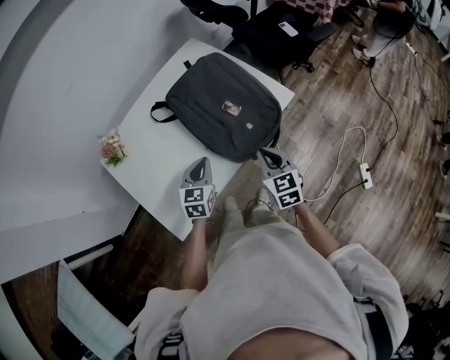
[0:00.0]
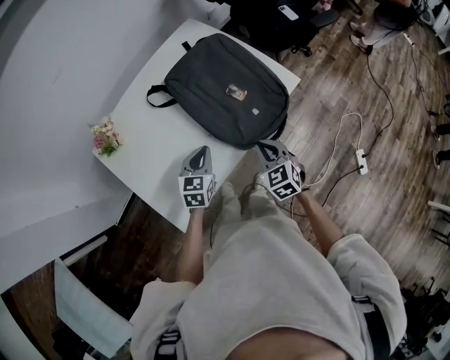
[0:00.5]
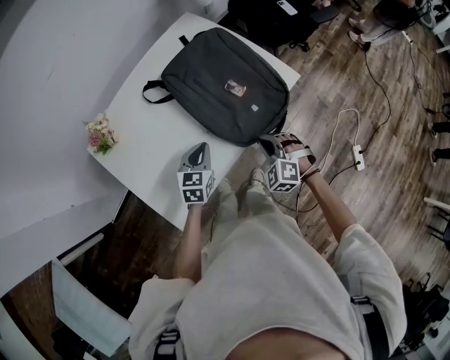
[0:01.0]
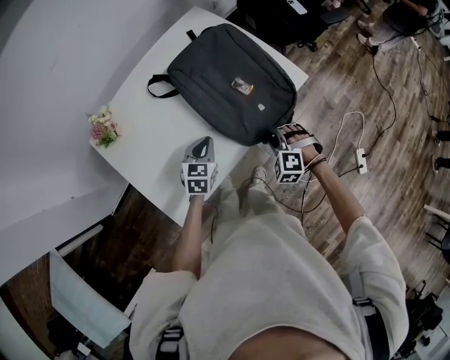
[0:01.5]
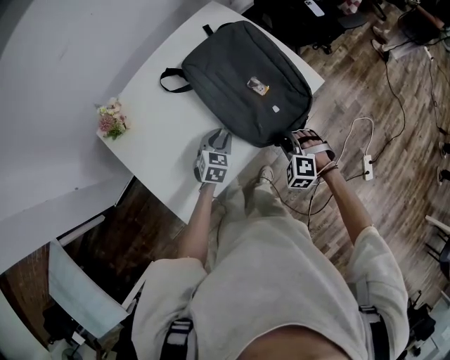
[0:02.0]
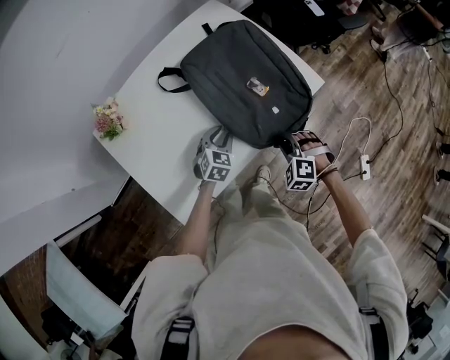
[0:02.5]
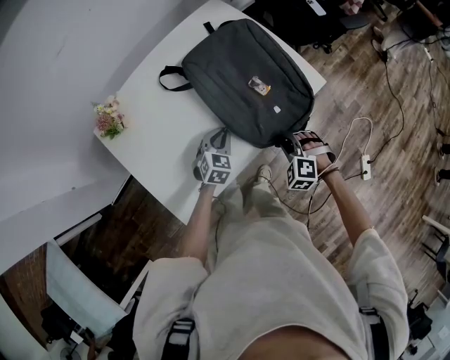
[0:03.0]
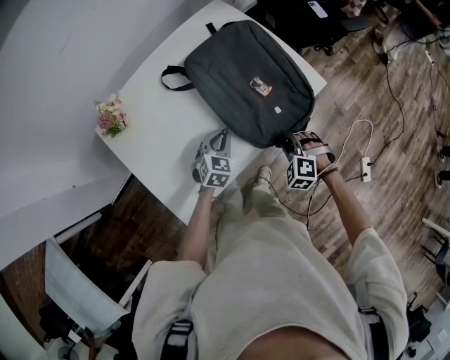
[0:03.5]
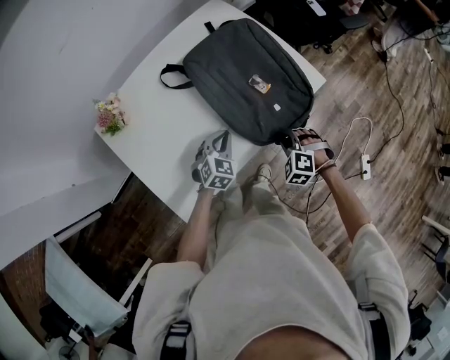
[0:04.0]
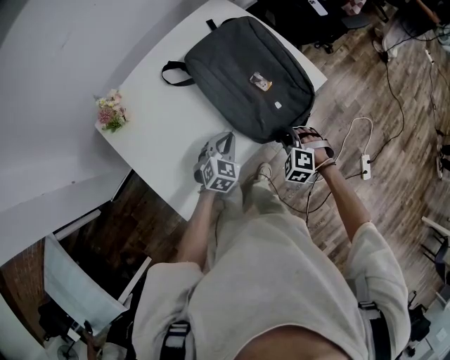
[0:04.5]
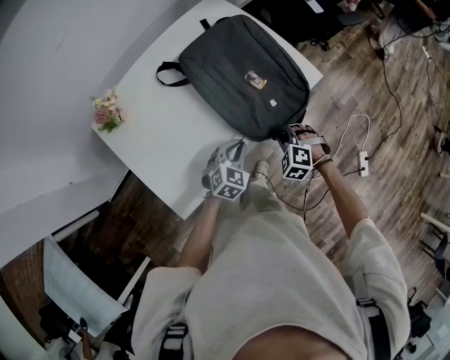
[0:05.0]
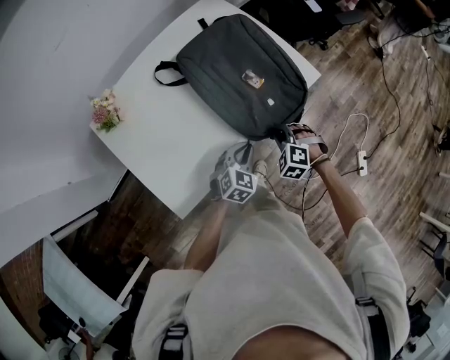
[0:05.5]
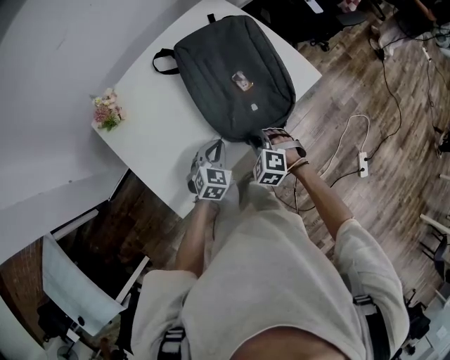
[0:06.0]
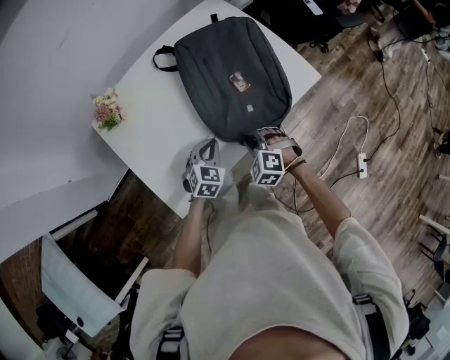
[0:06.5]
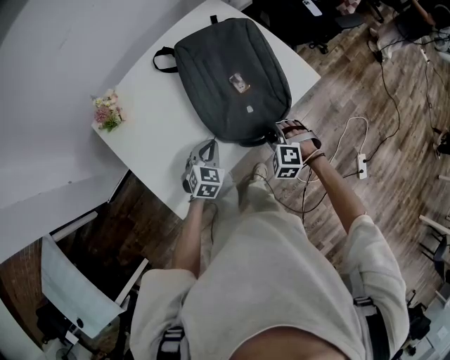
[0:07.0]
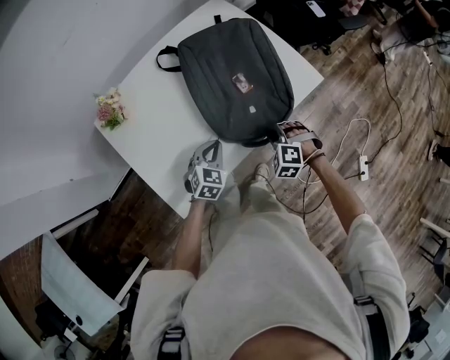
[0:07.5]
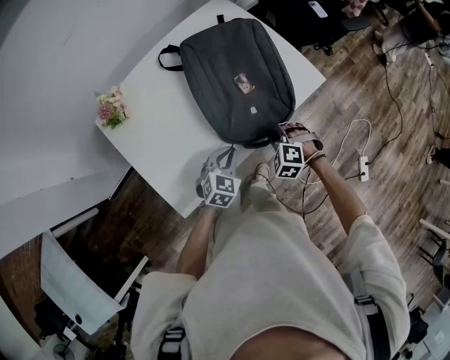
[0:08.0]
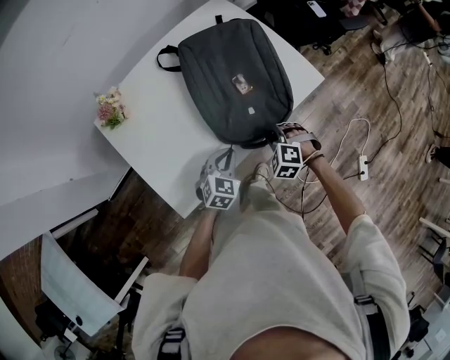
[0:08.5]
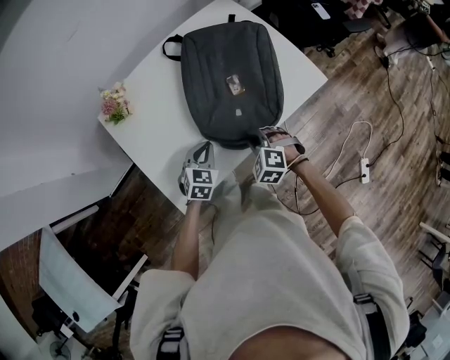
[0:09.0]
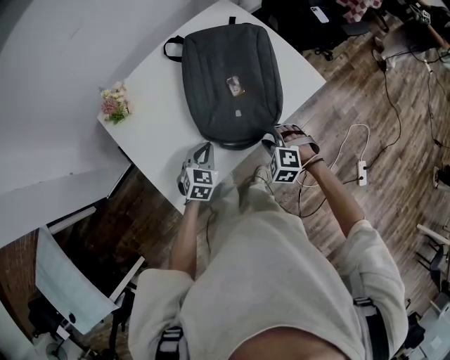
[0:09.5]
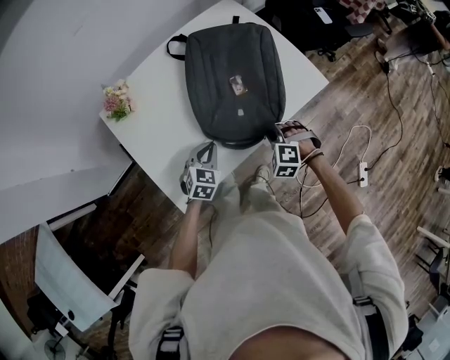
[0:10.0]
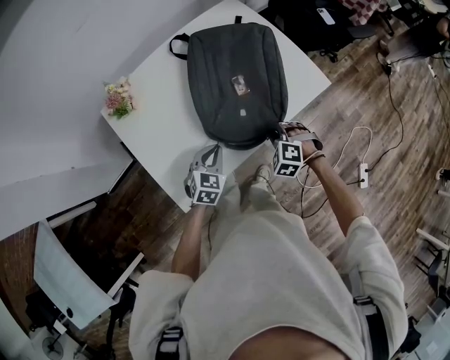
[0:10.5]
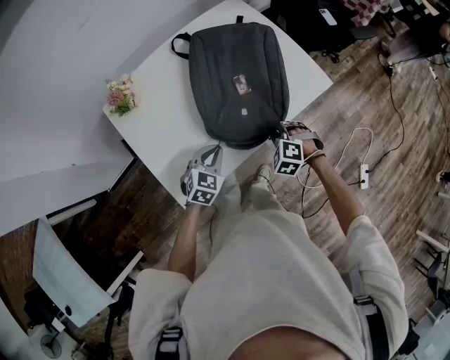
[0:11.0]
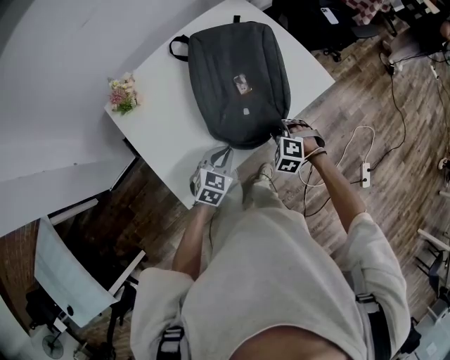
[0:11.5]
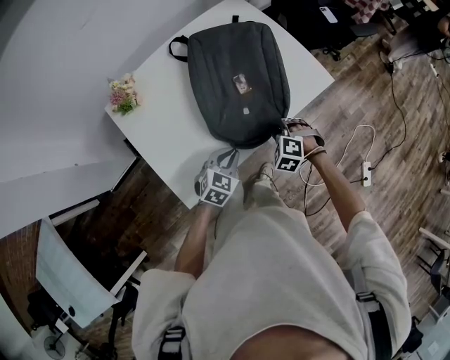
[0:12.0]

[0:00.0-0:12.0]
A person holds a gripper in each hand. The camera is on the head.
0:00.0 to 0:02.0: Both grippers travel together downward, some 10 cm. The right gripper rolls counterclockwise, seen from behind, by some 60 degrees, and opens its fingers.
0:02.0 to 0:04.0: The grippers move only a little.
0:04.0 to 0:06.0: The left gripper shifts some 5 cm backward, and travels to the right and back again, some 10 cm each way. Meanwhile the right gripper moves to the left, roughly 10 cm.
0:06.0 to 0:08.0: The right gripper opens, then closes again.
0:08.0 to 0:10.0: The right gripper reaches approximately 10 cm to the left, then returns, and opens and closes again. The left gripper travels to the left by some 10 cm.
0:10.0 to 0:12.0: The left gripper heads to the right, covering approximately 5 cm.

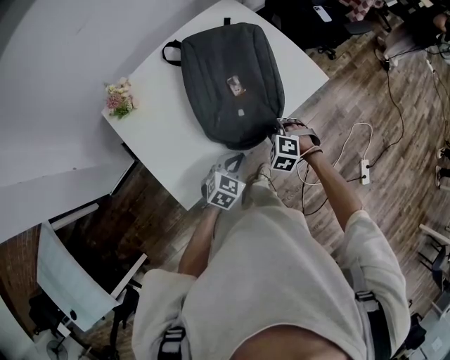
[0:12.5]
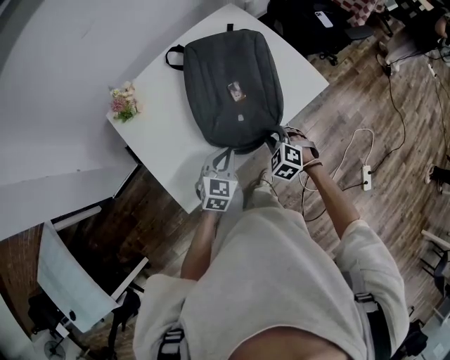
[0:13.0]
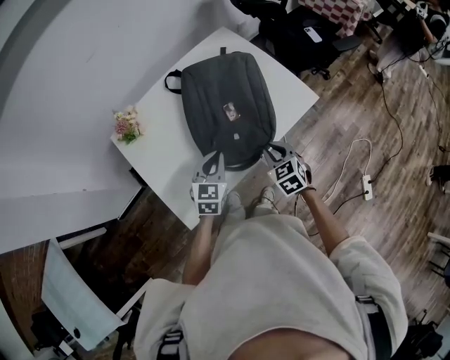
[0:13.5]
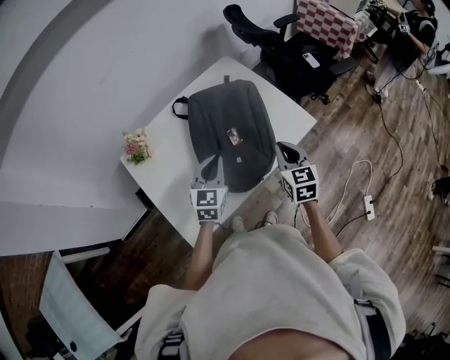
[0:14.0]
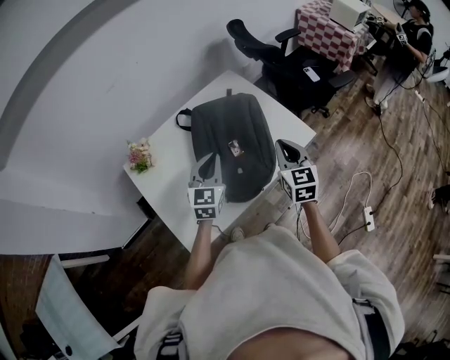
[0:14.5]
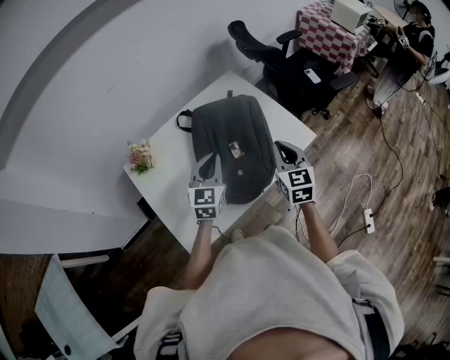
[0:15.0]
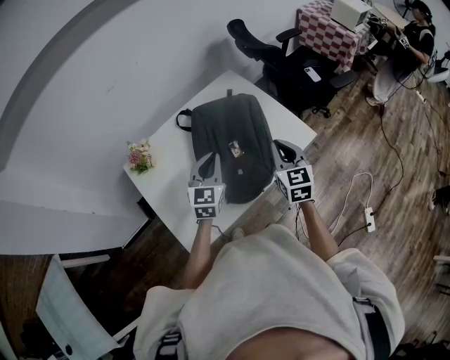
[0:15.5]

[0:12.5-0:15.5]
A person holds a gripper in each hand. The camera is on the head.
0:12.5 to 0:14.0: The left gripper goes some 20 cm upward and forward, and swivels approximately 30 degrees, while the right gripper heads upward, covering some 20 cm, and rolls clockwise, seen from behind, by about 60 degrees.
0:14.0 to 0:15.5: The right gripper shifts by some 5 cm.

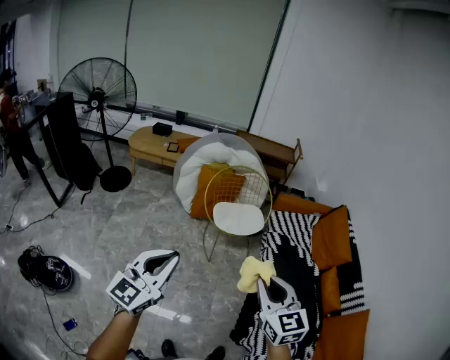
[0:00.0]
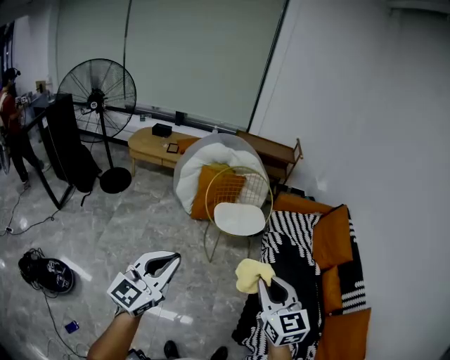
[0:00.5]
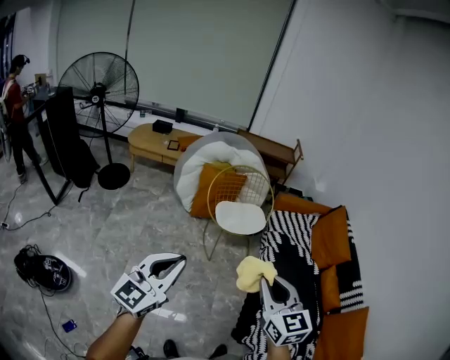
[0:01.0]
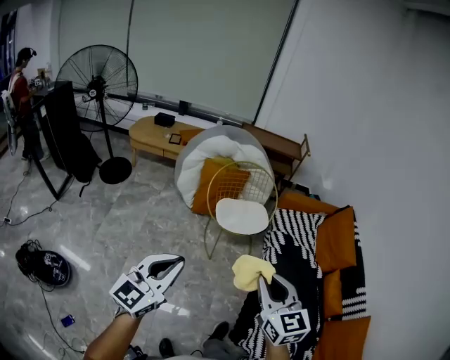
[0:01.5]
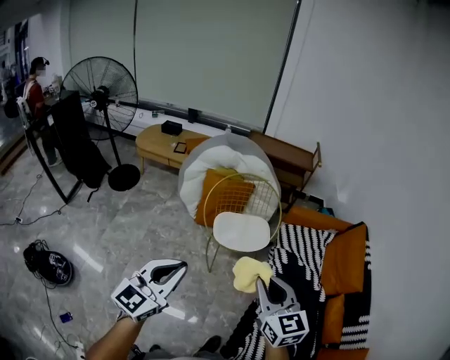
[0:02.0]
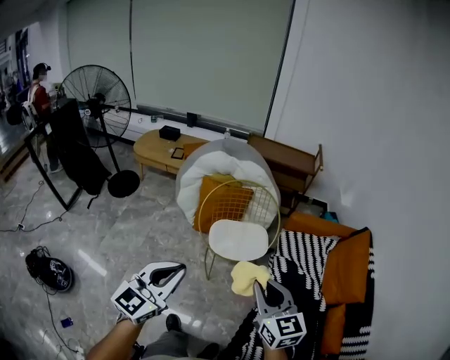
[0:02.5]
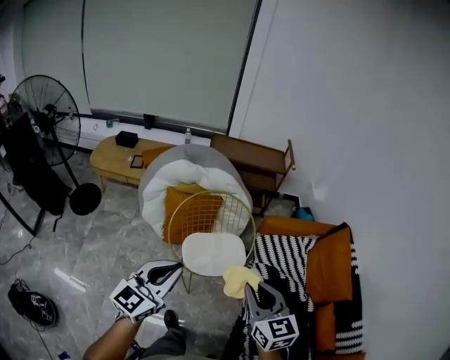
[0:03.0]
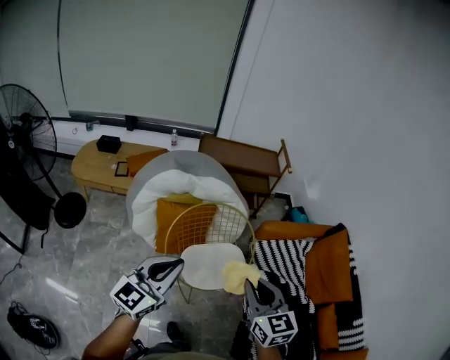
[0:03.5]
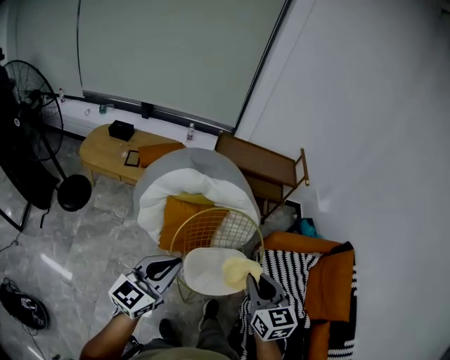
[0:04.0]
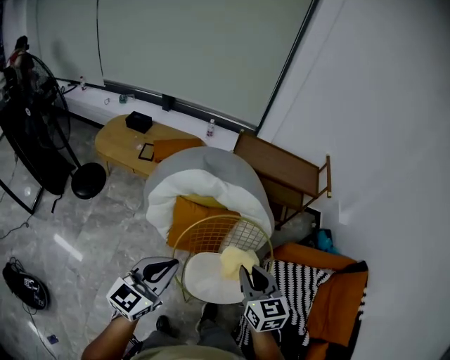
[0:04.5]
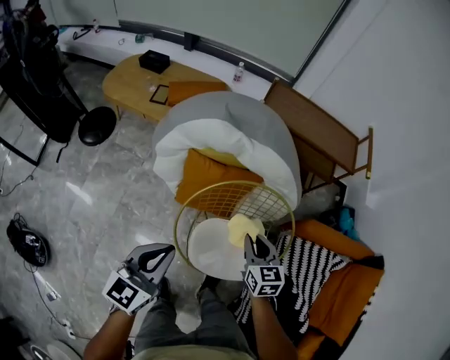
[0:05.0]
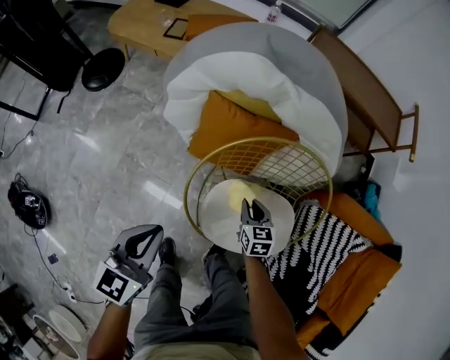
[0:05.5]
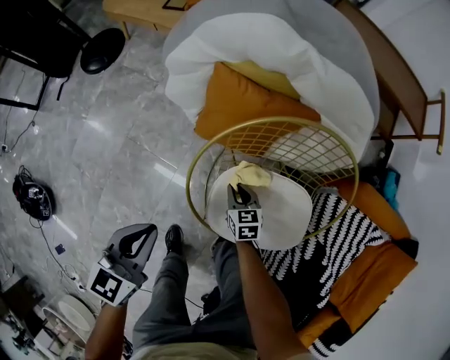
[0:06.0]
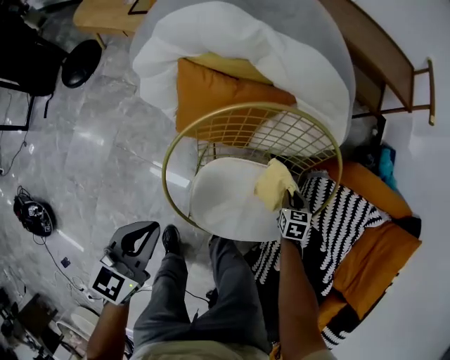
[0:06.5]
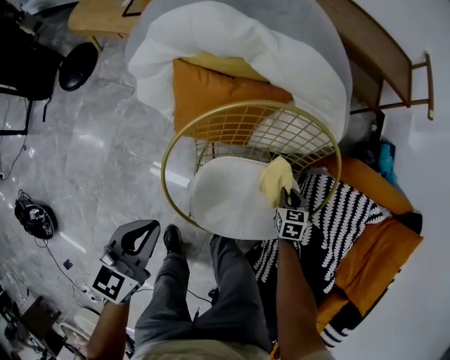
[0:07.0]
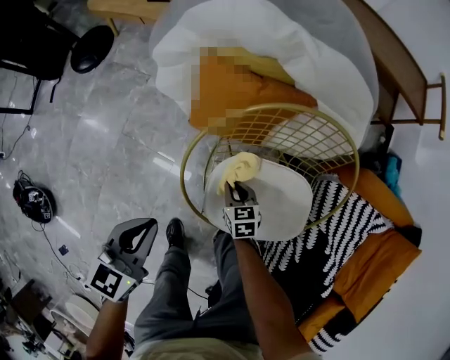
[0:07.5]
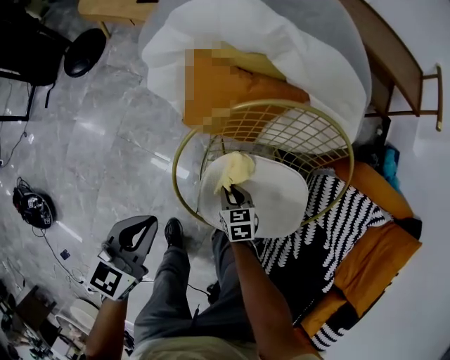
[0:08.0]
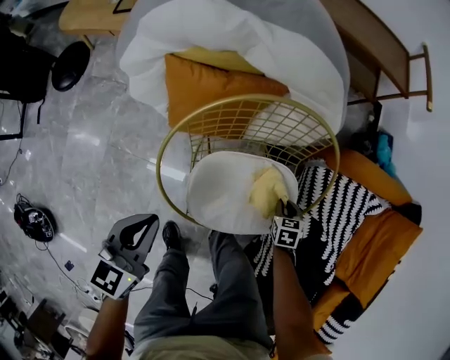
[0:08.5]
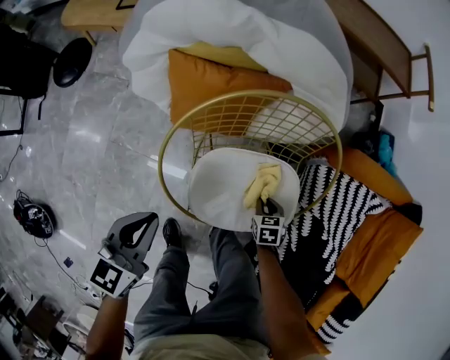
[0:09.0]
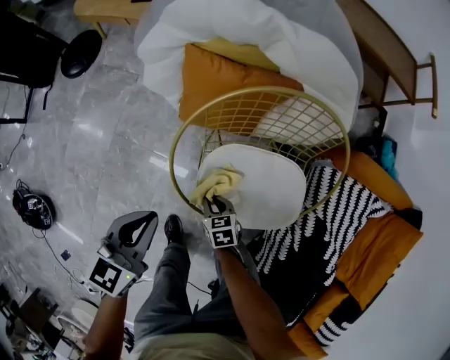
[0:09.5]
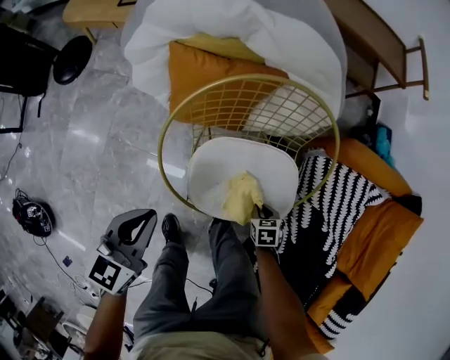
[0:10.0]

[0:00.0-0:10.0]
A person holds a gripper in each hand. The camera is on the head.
0:00.0 to 0:02.0: The right gripper shifts about 20 cm forward. Meanwhile the left gripper heads forward and to the right, covering approximately 20 cm.
0:02.0 to 0:04.0: Both grippers are carried forward, some 40 cm.
0:04.0 to 0:06.0: The left gripper shifts some 35 cm downward, and tips its fingers downward by some 30 degrees. The right gripper moves downward, roughly 60 cm, and changes its angle by about 40 degrees.
0:06.0 to 0:08.0: The right gripper travels to the right and back again, about 30 cm each way.
0:08.0 to 0:10.0: The right gripper ends up about 20 cm from where it was, and changes its angle by roughly 20 degrees.

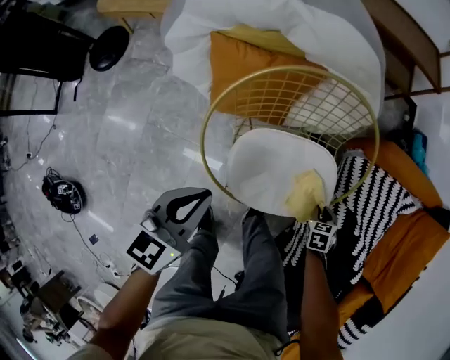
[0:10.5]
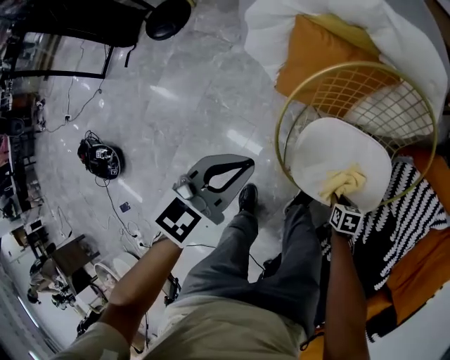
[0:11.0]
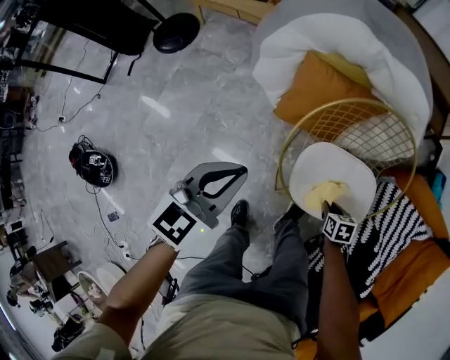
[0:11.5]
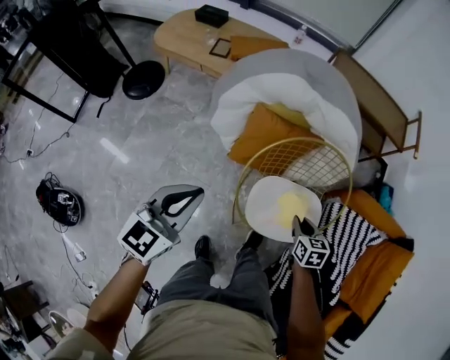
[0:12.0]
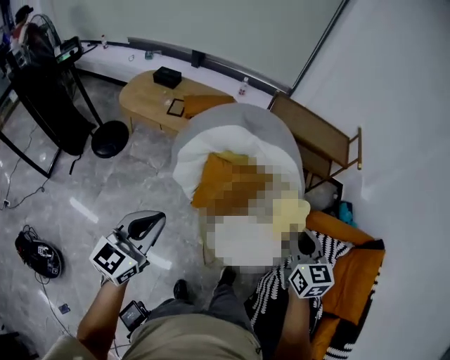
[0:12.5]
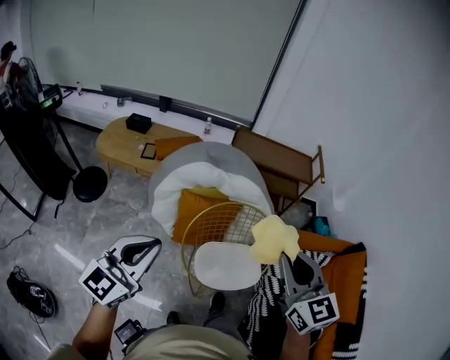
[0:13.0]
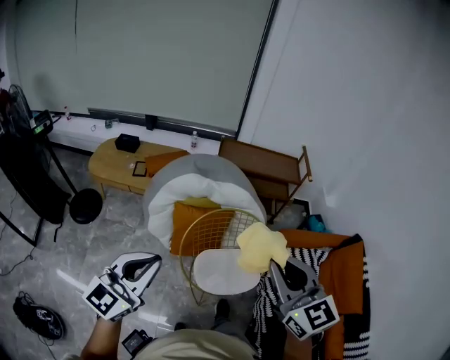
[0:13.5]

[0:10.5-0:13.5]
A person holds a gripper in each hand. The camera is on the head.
0:10.5 to 0:12.0: The two grippers go about 25 cm upward. The right gripper rotates some 30 degrees.
0:12.0 to 0:13.5: The left gripper heads upward, covering some 25 cm, and swivels approximately 30 degrees. The right gripper moves upward, roughly 50 cm, and angles its fingers upward, by about 40 degrees.
